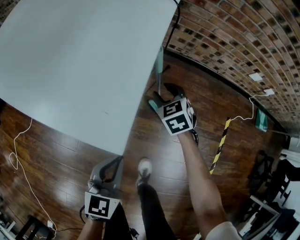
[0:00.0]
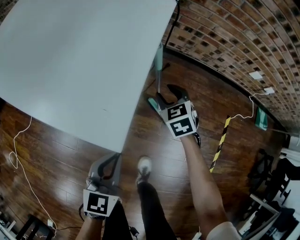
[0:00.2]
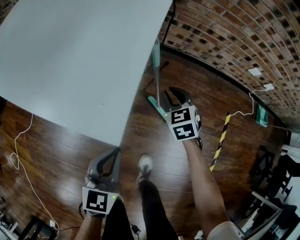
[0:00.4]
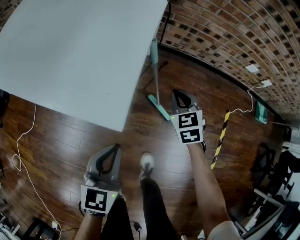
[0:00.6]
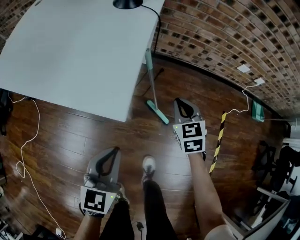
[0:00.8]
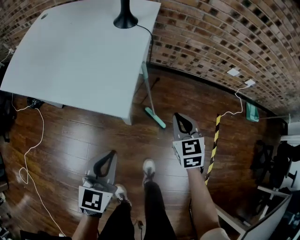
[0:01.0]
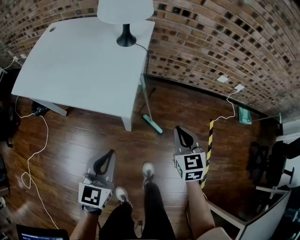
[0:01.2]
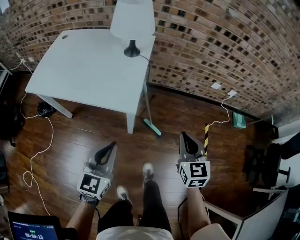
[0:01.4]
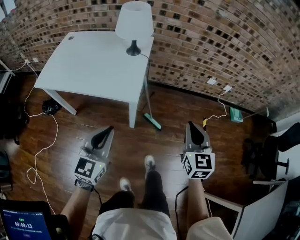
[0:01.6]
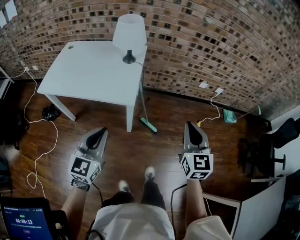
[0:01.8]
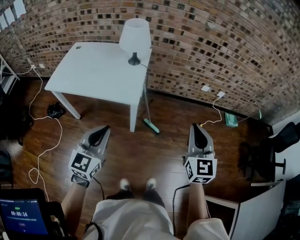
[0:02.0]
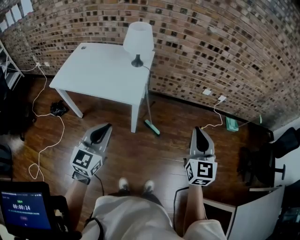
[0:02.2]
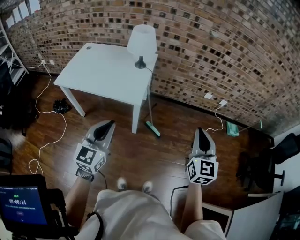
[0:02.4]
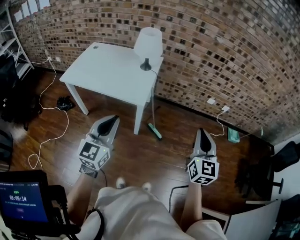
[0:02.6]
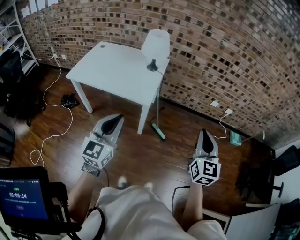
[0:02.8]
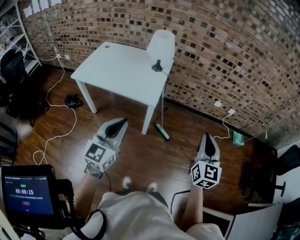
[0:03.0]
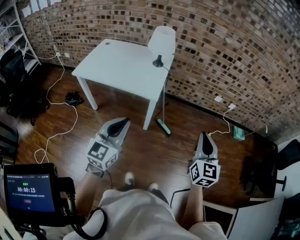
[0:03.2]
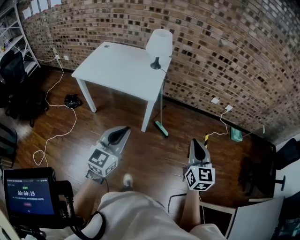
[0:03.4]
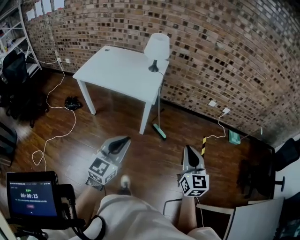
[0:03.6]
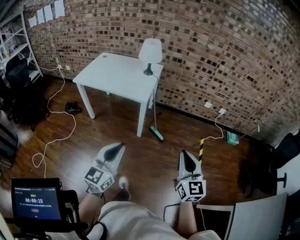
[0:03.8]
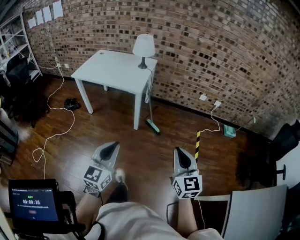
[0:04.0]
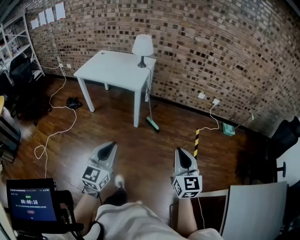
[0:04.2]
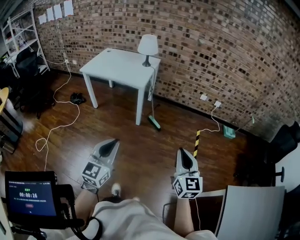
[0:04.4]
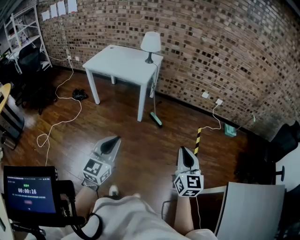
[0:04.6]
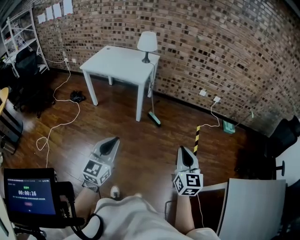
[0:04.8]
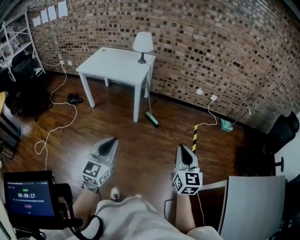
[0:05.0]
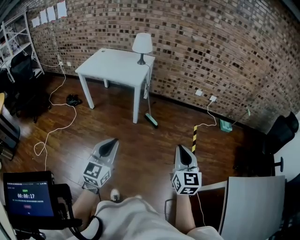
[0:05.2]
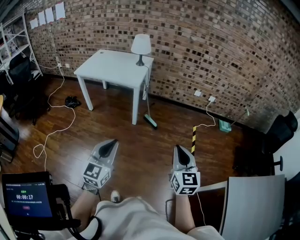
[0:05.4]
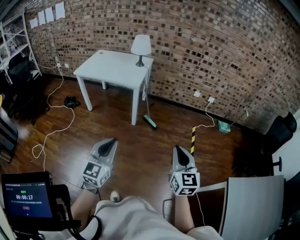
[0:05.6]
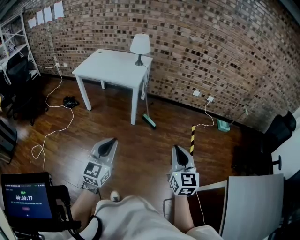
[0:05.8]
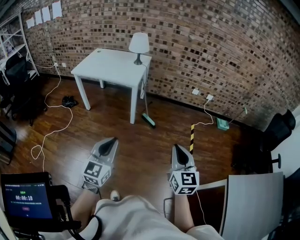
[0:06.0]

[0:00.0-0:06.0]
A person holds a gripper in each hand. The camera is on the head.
0:00.0 to 0:01.6: The right gripper travels upward and backward by some 60 cm, tilts its fingers roughly 30 degrees upward, and closes up. Meanwhile the left gripper moves upward, roughly 40 cm, and rotates some 30 degrees.
0:01.6 to 0:03.0: Both grippers move upward and backward, approximately 20 cm.
0:03.0 to 0:04.4: The right gripper is displaced backward by some 35 cm; the left gripper heads backward and to the right, covering roughly 40 cm.
0:04.4 to 0:06.0: There are only small adjustments of the grippers.

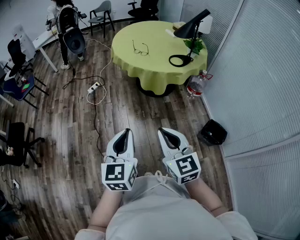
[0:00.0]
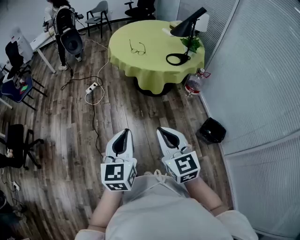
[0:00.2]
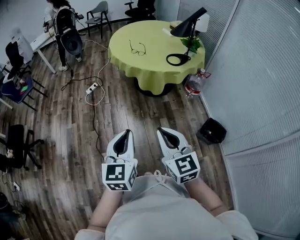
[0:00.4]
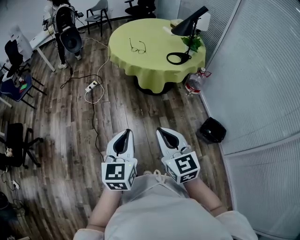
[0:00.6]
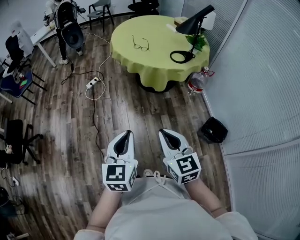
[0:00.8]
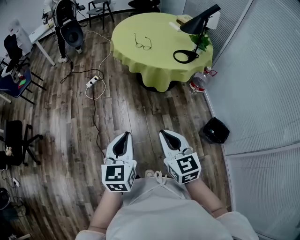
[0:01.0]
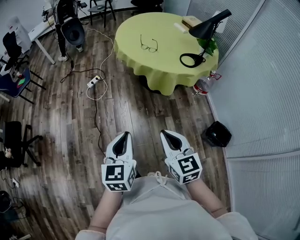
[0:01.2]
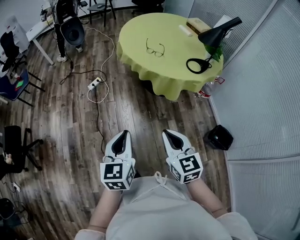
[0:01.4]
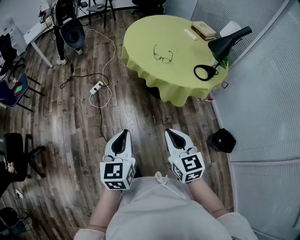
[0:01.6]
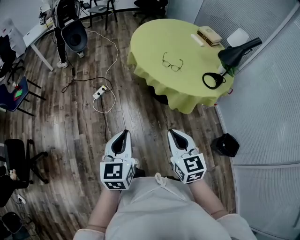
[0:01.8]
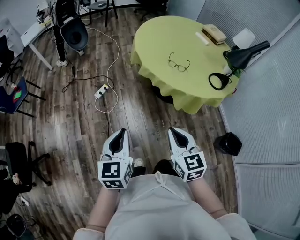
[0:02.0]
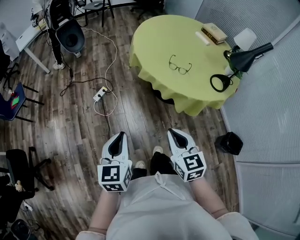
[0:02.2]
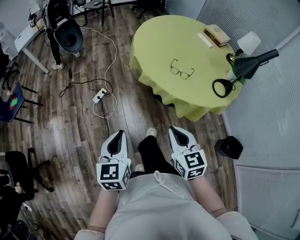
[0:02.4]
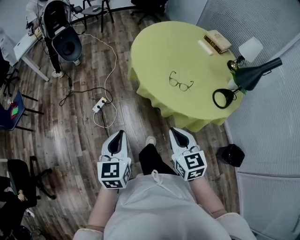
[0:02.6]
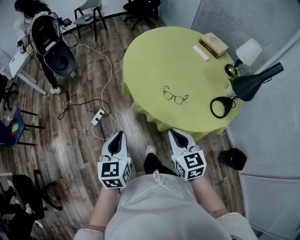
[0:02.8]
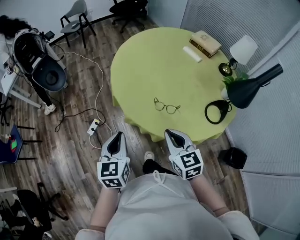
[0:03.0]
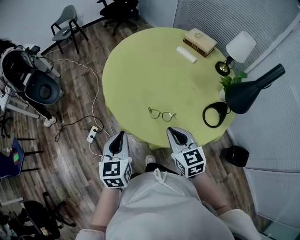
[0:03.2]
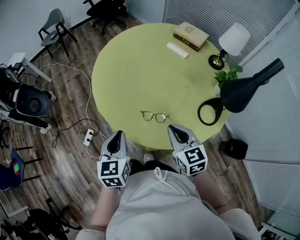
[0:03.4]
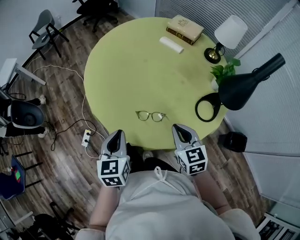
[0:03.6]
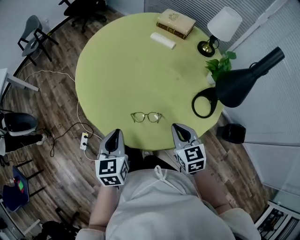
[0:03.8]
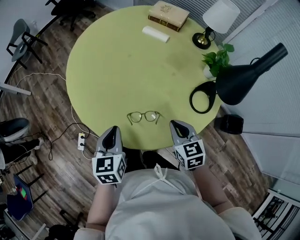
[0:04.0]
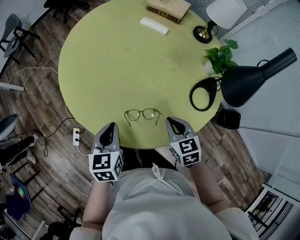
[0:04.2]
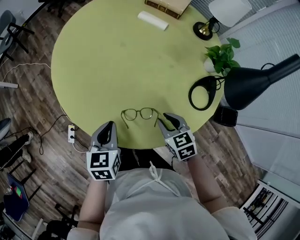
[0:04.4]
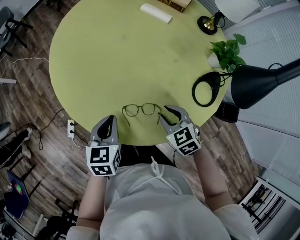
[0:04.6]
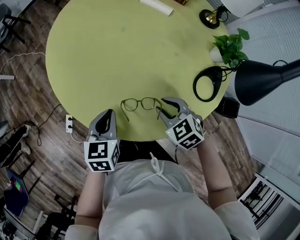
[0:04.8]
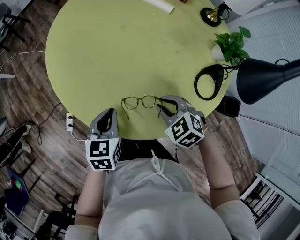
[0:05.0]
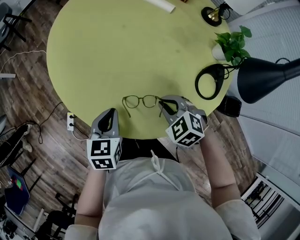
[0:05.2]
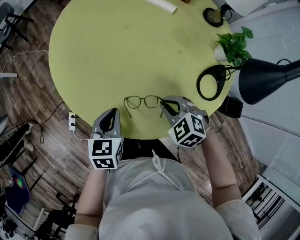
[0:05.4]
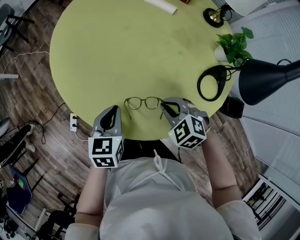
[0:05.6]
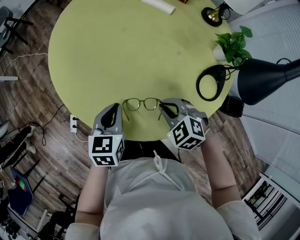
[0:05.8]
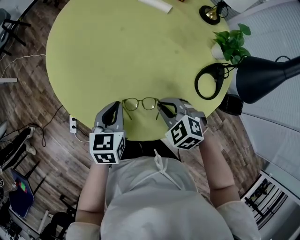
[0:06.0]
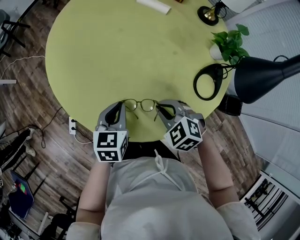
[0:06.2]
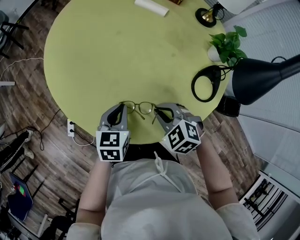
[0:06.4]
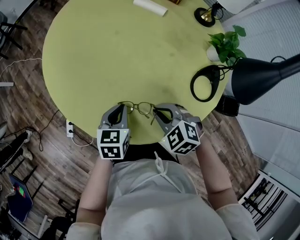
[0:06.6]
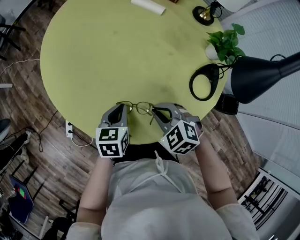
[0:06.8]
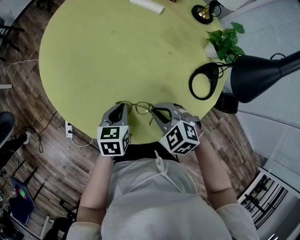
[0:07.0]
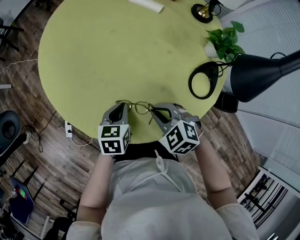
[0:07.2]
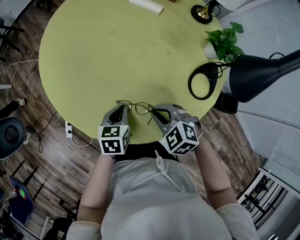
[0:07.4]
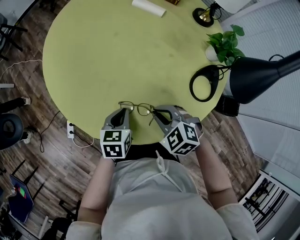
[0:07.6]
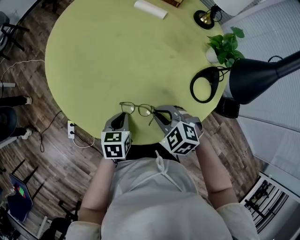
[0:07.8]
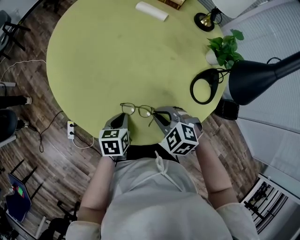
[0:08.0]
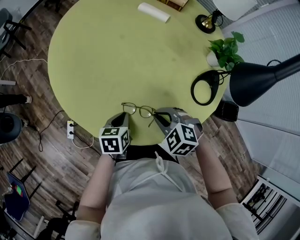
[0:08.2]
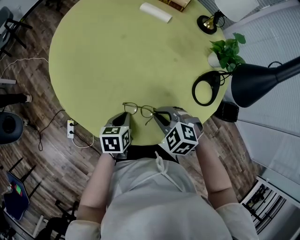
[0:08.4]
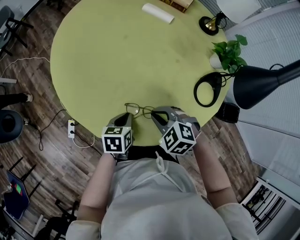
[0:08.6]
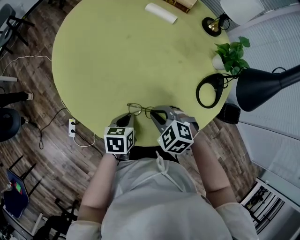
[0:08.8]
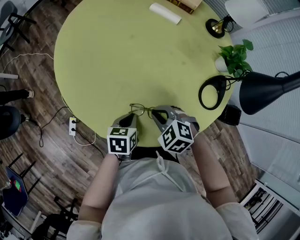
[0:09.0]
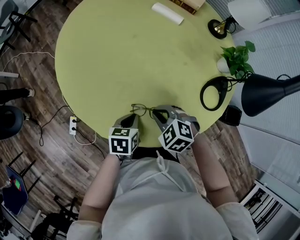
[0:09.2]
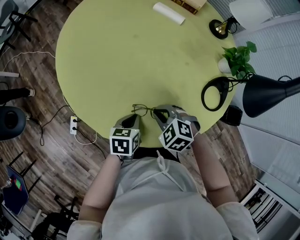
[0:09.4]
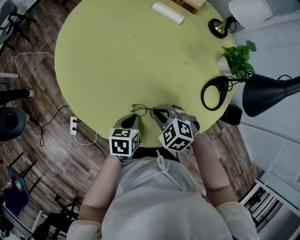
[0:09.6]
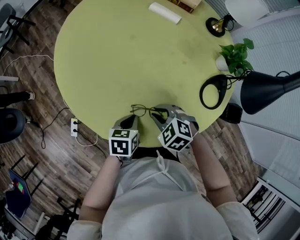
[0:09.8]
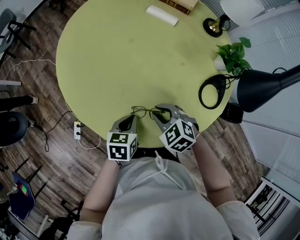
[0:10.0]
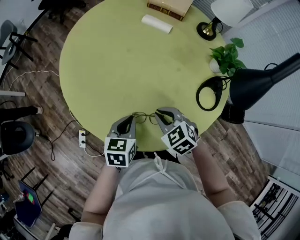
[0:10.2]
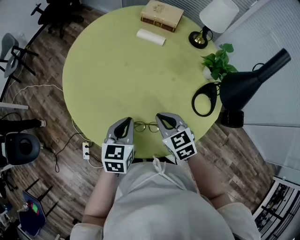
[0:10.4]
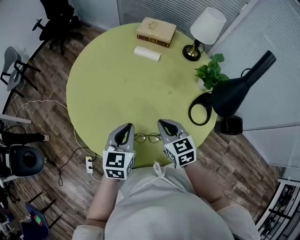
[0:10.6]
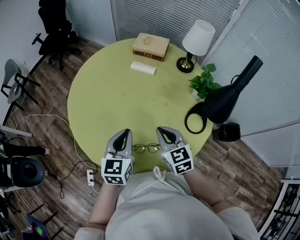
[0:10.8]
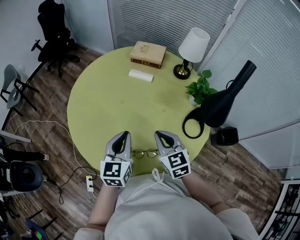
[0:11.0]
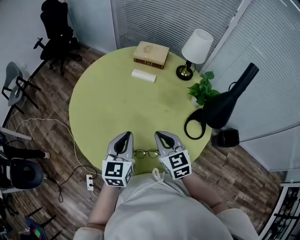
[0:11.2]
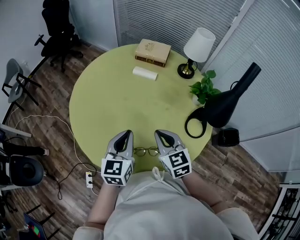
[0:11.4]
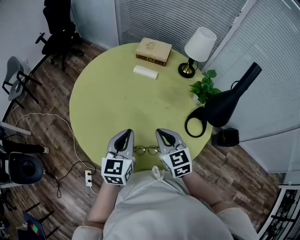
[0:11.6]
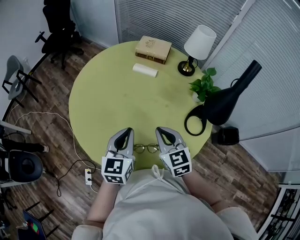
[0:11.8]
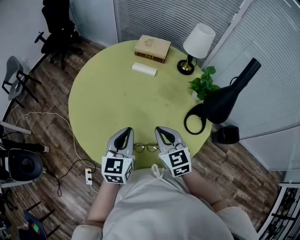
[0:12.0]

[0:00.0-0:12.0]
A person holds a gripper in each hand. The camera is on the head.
0:00.0 to 0:01.6: Both grippers move forward and to the left, some 30 cm.
0:01.6 to 0:03.0: Both grippers are carried forward, approximately 50 cm.
0:03.0 to 0:04.4: The right gripper moves downward, forward and to the right, some 25 cm, swivels some 30 degrees, and opens its fingers, while the left gripper is displaced forward, downward and to the right by approximately 25 cm, and changes its angle by roughly 30 degrees.
0:04.4 to 0:06.0: The right gripper rotates some 40 degrees; the left gripper ends up approximately 5 cm from where it was.
0:06.0 to 0:07.6: The left gripper is displaced downward by about 5 cm.
0:07.6 to 0:09.0: The right gripper moves approximately 5 cm.
0:09.0 to 0:10.4: The right gripper moves upward, approximately 10 cm, and turns by approximately 40 degrees. Meanwhile the left gripper heads upward, covering approximately 15 cm, and changes its angle by roughly 30 degrees.
0:10.4 to 0:12.0: The grippers both shift upward by roughly 10 cm.

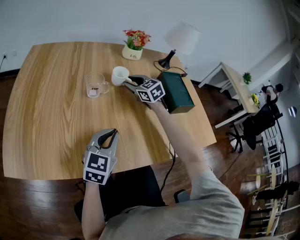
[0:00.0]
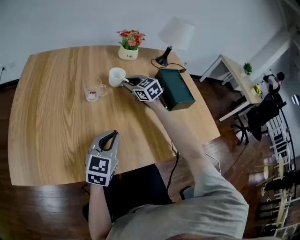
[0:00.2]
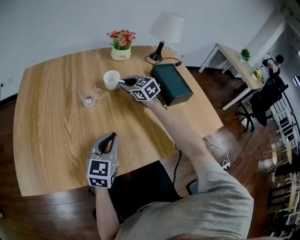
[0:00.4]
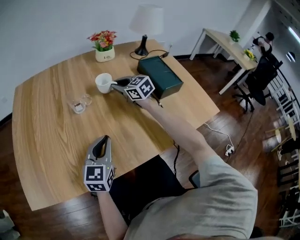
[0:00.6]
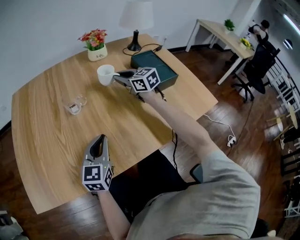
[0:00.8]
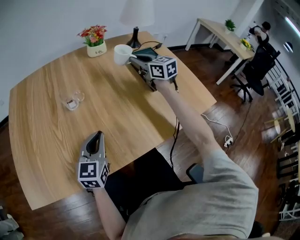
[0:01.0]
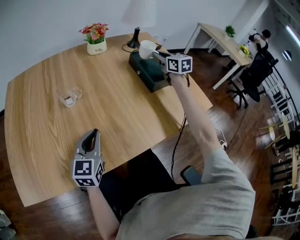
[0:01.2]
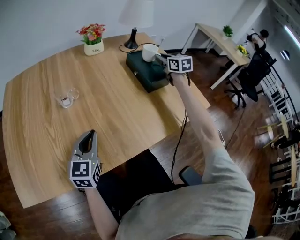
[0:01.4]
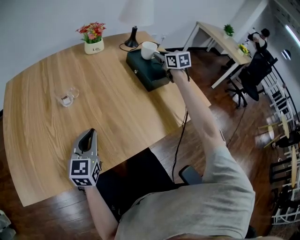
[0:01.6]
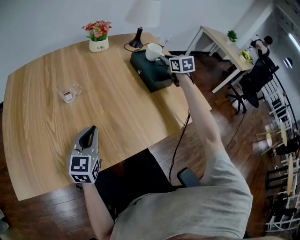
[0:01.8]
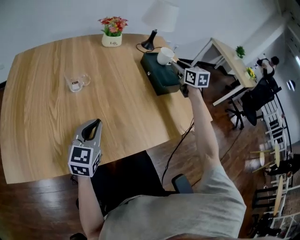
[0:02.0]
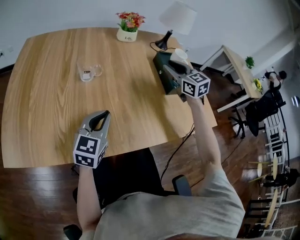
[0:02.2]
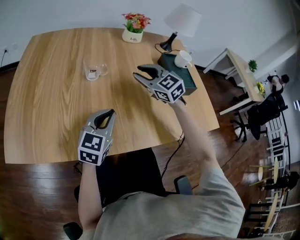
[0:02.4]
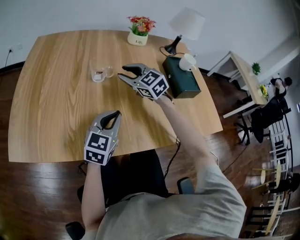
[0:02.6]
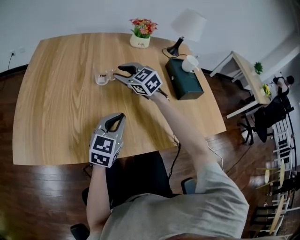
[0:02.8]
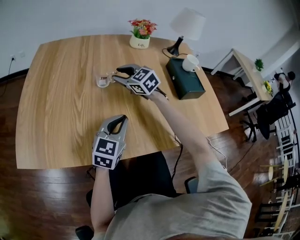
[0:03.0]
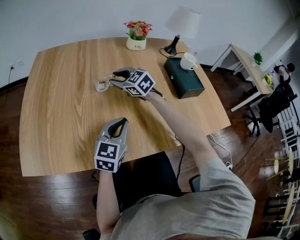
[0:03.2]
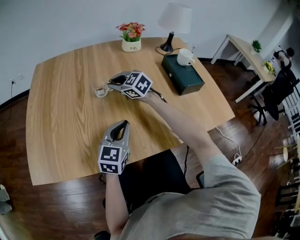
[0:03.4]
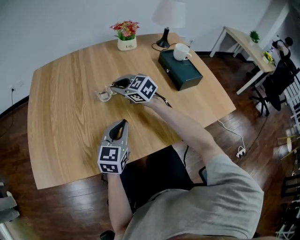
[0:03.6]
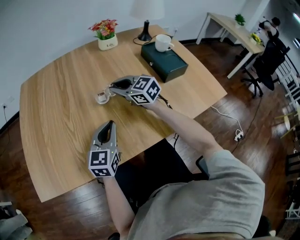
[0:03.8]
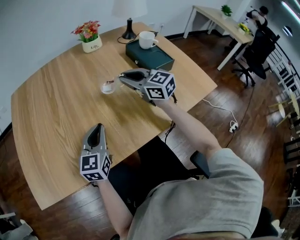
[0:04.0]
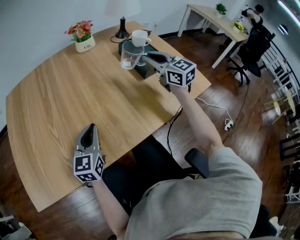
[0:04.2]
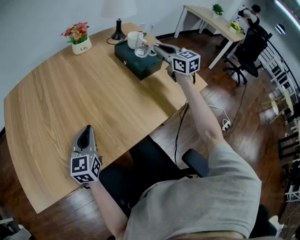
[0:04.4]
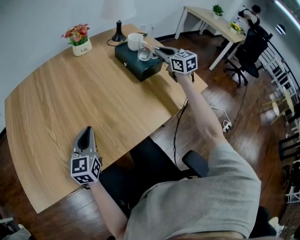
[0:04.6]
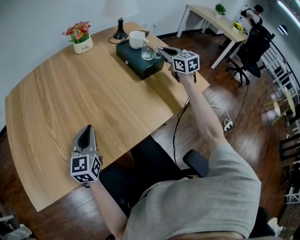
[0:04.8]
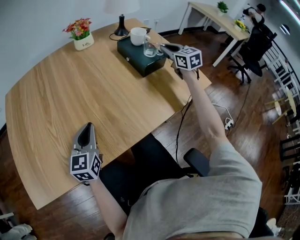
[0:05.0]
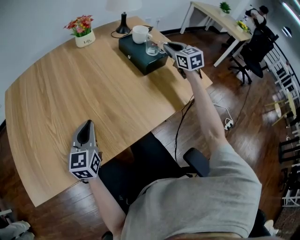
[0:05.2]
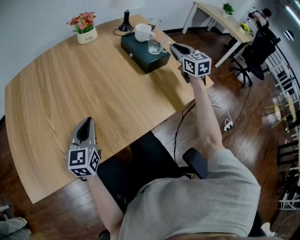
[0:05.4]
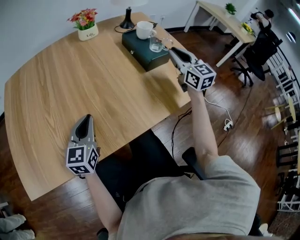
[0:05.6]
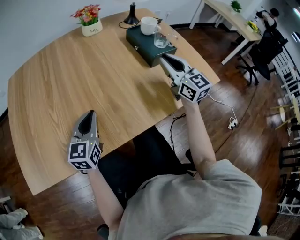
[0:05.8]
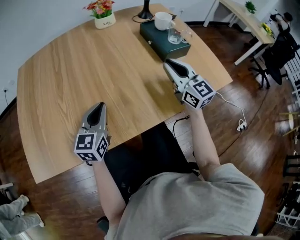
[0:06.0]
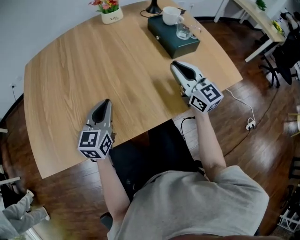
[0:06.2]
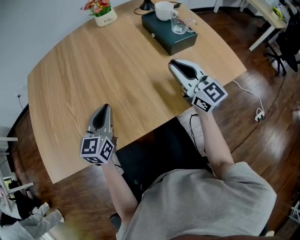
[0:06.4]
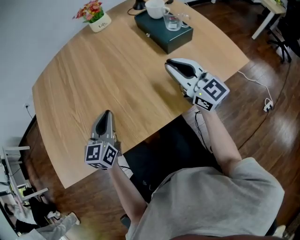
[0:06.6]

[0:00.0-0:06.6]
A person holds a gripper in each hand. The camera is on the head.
0:00.0 to 0:01.6: The right gripper moves to the right, some 35 cm, and changes its angle by about 40 degrees.
0:01.6 to 0:03.2: The right gripper is displaced to the left by some 40 cm, changes its angle by approximately 50 degrees, and opens.
0:03.2 to 0:05.0: The right gripper travels to the right by approximately 50 cm, rotates approximately 50 degrees, and closes up.
0:05.0 to 0:06.6: The right gripper shifts roughly 25 cm backward and to the left, and rotates about 30 degrees.
